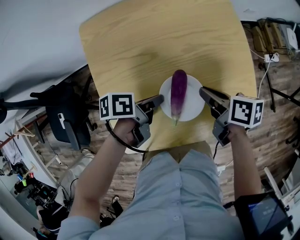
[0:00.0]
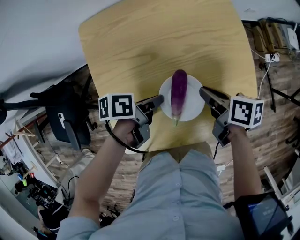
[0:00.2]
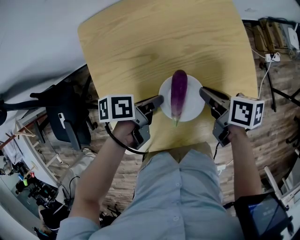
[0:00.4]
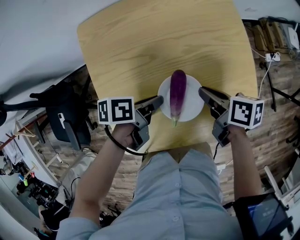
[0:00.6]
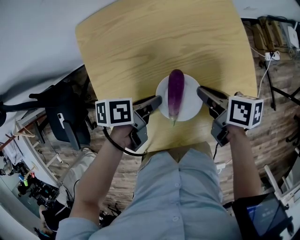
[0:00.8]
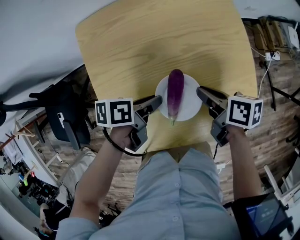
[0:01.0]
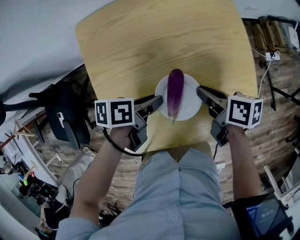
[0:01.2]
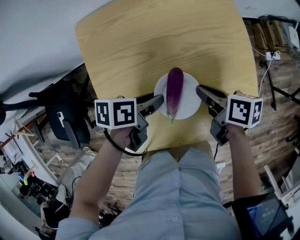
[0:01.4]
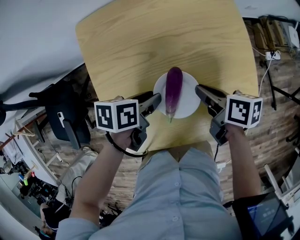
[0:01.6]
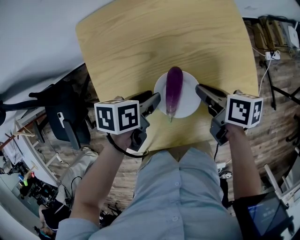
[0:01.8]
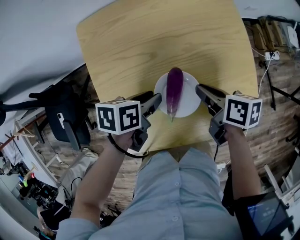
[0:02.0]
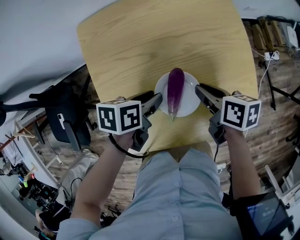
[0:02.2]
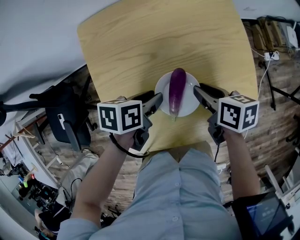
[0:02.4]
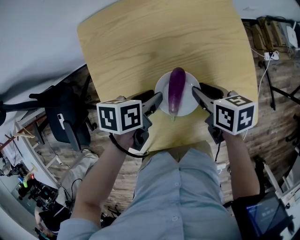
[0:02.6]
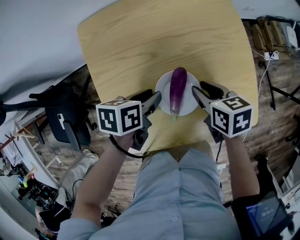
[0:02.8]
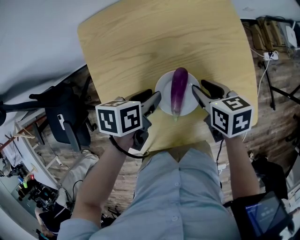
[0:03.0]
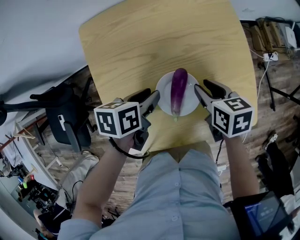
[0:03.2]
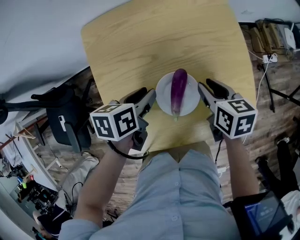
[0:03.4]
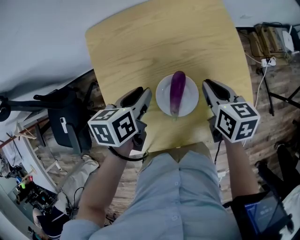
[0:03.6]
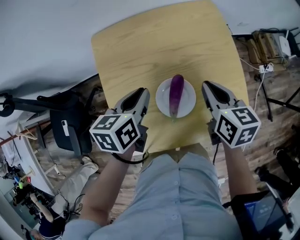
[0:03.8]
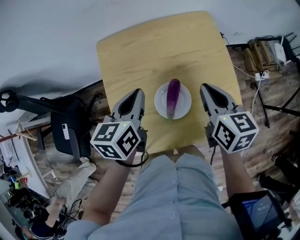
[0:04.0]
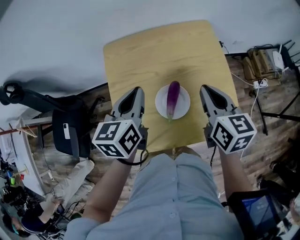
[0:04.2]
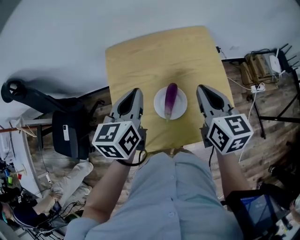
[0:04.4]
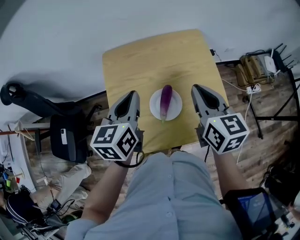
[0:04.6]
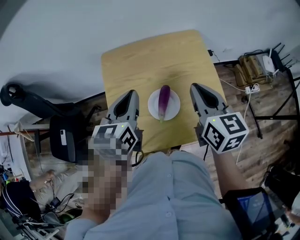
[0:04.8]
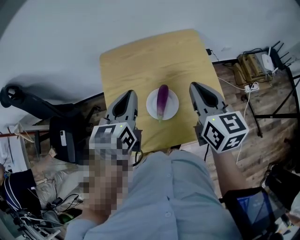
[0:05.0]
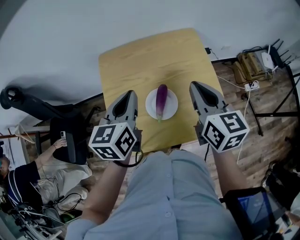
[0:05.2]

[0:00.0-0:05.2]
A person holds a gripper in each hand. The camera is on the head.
0:01.8 to 0:03.4: The right gripper rotates about 30 degrees, and opens up.
0:03.4 to 0:05.2: The right gripper shifts approximately 20 cm upward, swivels roughly 30 degrees, and closes its fingers.

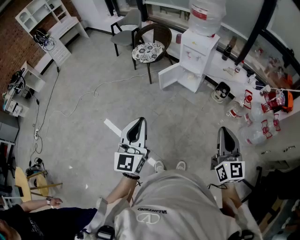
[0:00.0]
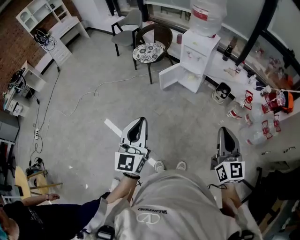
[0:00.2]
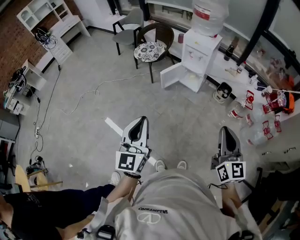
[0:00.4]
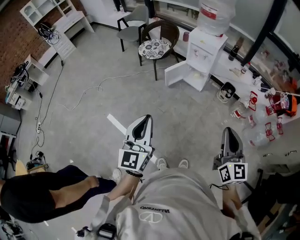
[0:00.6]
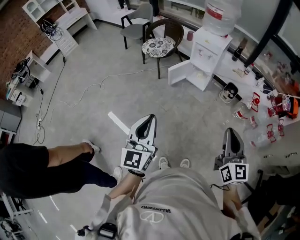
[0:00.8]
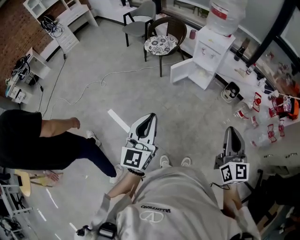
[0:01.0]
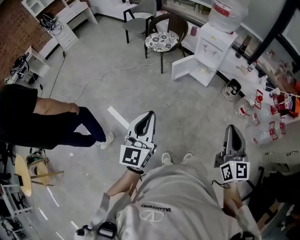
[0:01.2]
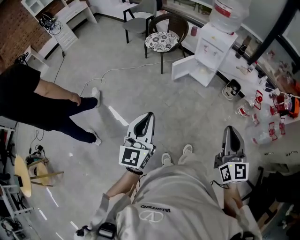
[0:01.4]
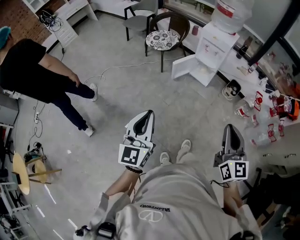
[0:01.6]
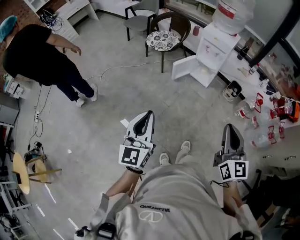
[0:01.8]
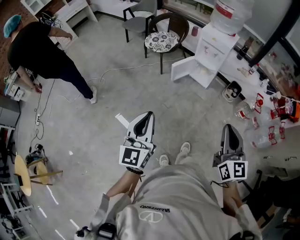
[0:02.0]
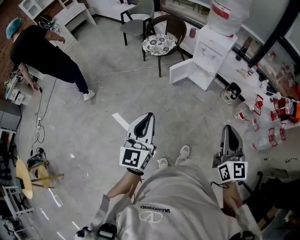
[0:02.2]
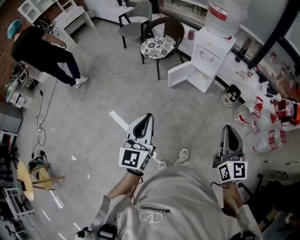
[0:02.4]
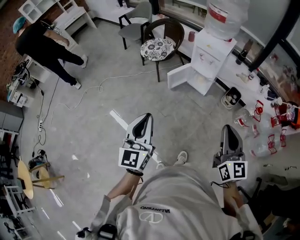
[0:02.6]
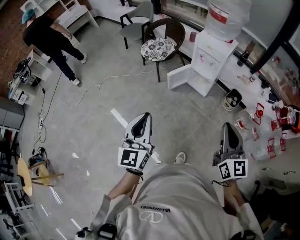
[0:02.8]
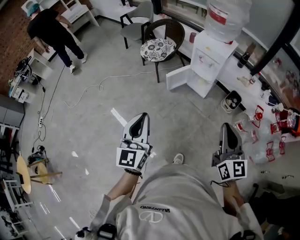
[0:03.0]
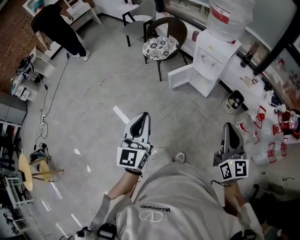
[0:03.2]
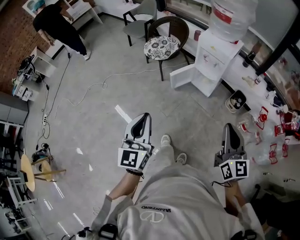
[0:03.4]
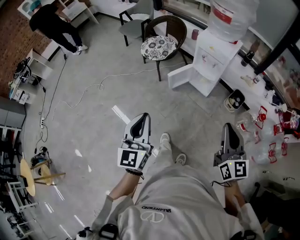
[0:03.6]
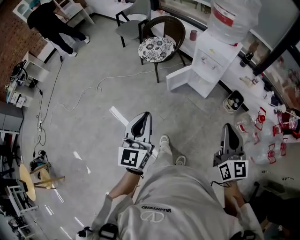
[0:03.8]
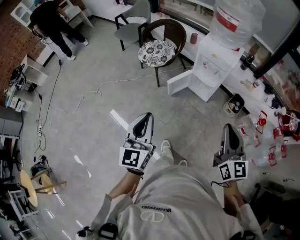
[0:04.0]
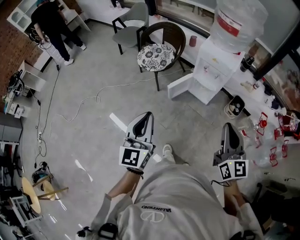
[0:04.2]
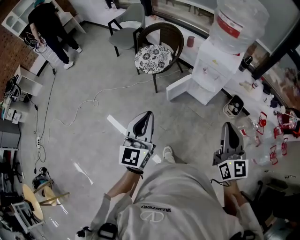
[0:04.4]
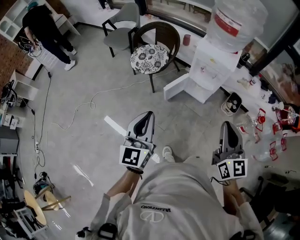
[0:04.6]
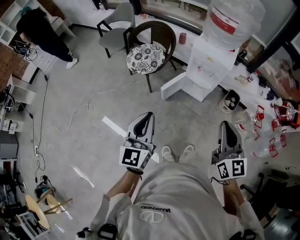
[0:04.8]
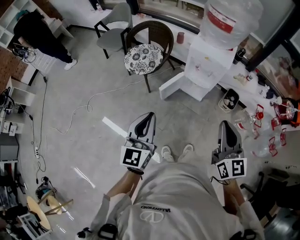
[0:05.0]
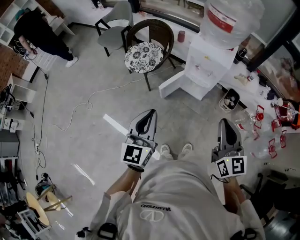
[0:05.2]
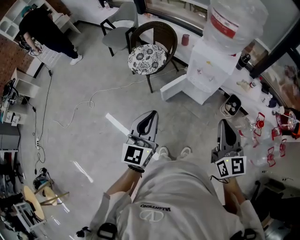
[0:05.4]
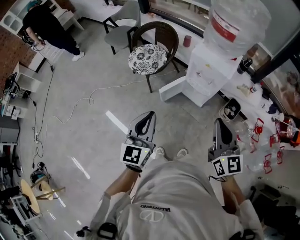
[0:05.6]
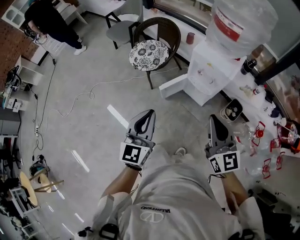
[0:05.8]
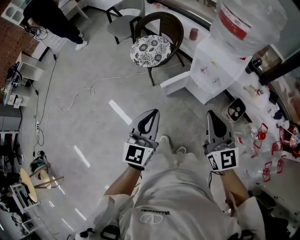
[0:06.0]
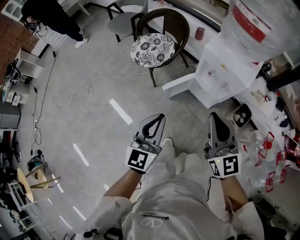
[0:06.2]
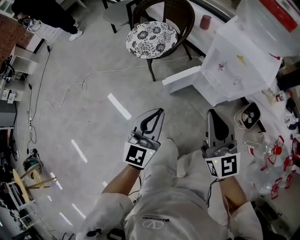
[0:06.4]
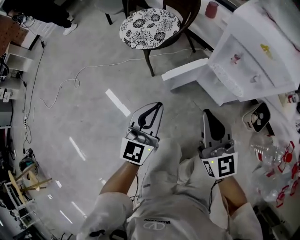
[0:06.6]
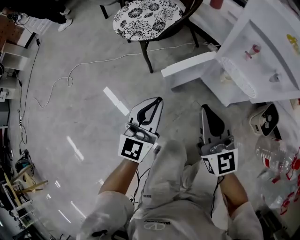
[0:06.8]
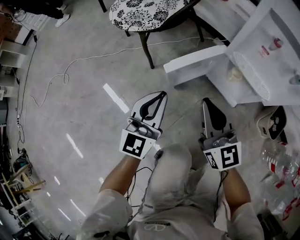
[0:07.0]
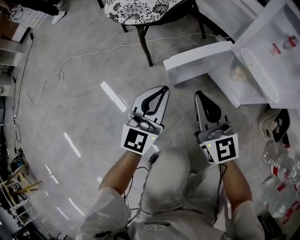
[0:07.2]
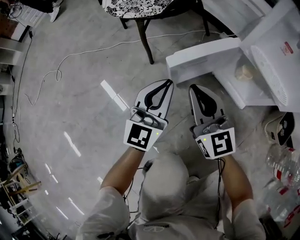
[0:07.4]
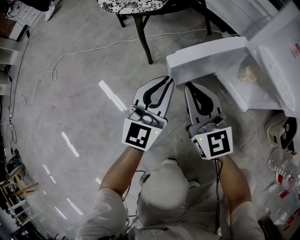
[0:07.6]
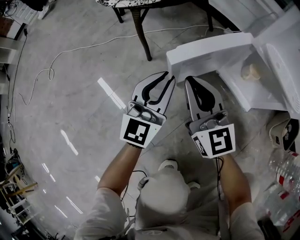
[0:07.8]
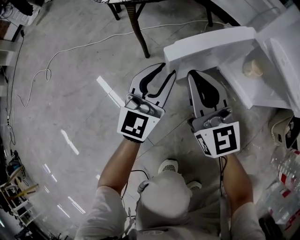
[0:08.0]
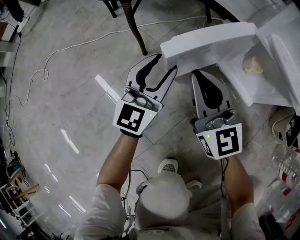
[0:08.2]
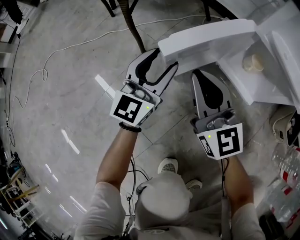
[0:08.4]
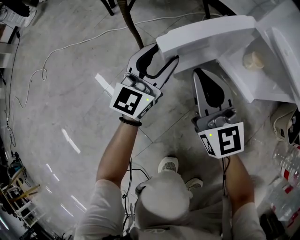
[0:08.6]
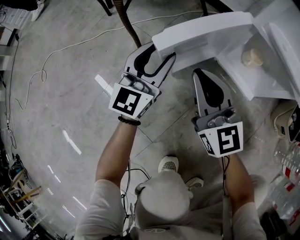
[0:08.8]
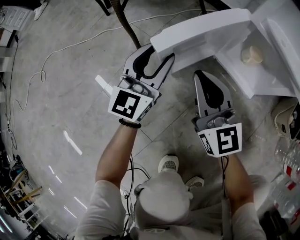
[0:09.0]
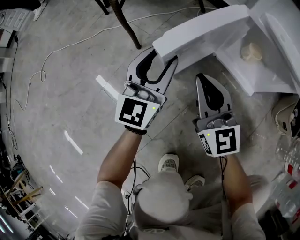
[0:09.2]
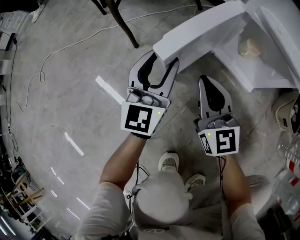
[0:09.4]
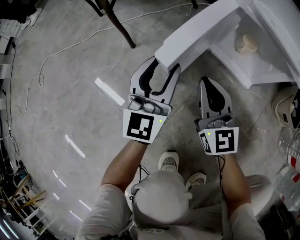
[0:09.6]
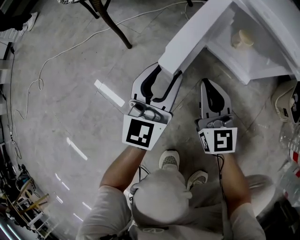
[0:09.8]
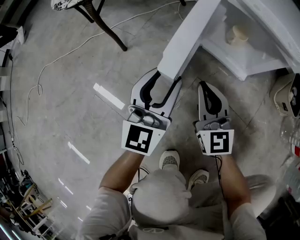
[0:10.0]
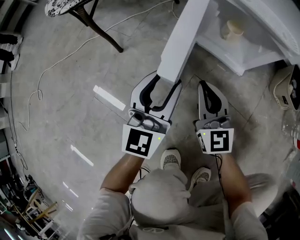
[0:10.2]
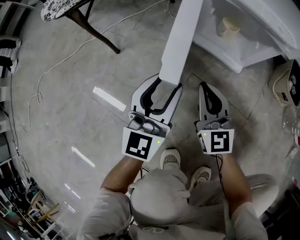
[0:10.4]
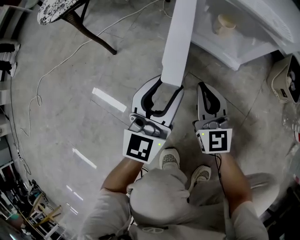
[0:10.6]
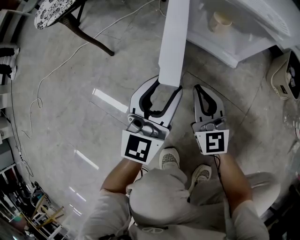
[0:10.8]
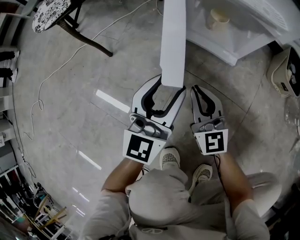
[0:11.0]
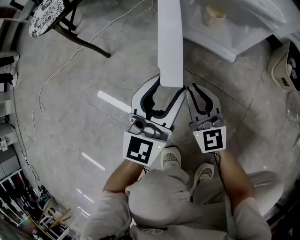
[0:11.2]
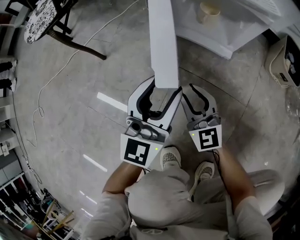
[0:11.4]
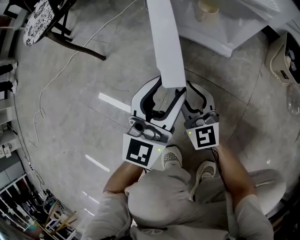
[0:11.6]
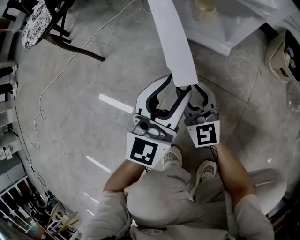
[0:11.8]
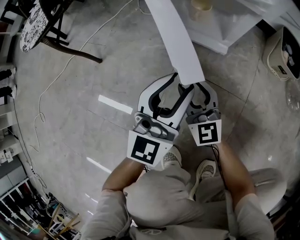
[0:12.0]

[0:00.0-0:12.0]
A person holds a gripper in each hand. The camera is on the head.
0:00.0 to 0:01.6: The two grippers go approximately 10 cm to the left.
0:01.6 to 0:03.0: Both grippers travel together forward and to the right, some 20 cm.
0:03.0 to 0:04.4: The right gripper shifts some 20 cm forward and to the left. Meanwhile the left gripper is displaced forward by about 20 cm.
0:04.4 to 0:06.0: The right gripper shifts roughly 15 cm forward. Meanwhile the left gripper is displaced to the right, forward and downward by roughly 20 cm.
0:06.0 to 0:07.6: Both grippers move downward, approximately 60 cm.
0:07.6 to 0:09.0: The left gripper moves downward and forward, some 10 cm, and opens its fingers; the right gripper travels downward by about 5 cm.
0:09.0 to 0:10.4: The left gripper shifts about 15 cm to the right and backward, while the right gripper heads to the right, downward and backward, covering approximately 15 cm.
0:10.4 to 0:12.0: The left gripper goes about 10 cm to the right. Meanwhile the right gripper moves downward, approximately 5 cm, and opens.

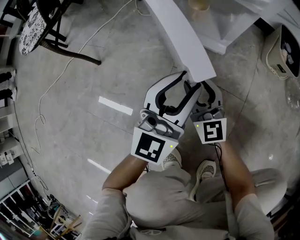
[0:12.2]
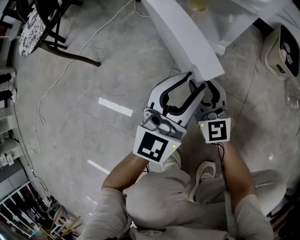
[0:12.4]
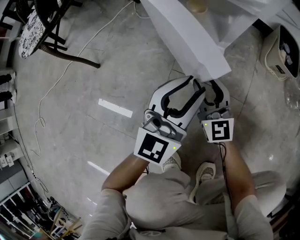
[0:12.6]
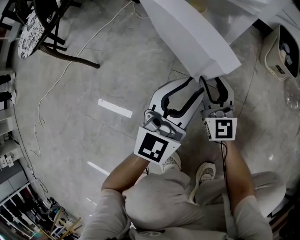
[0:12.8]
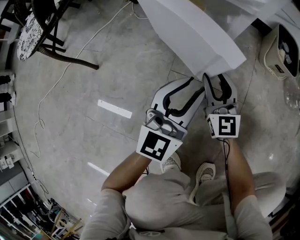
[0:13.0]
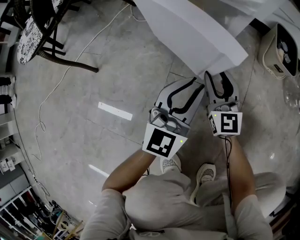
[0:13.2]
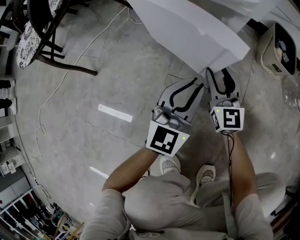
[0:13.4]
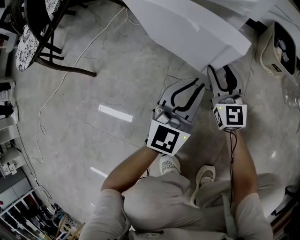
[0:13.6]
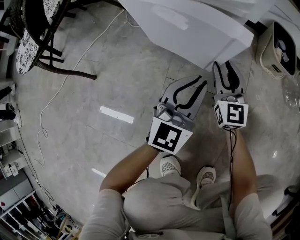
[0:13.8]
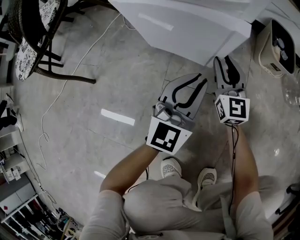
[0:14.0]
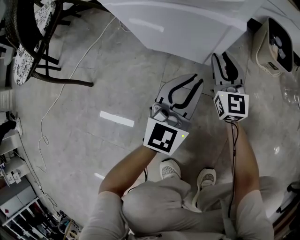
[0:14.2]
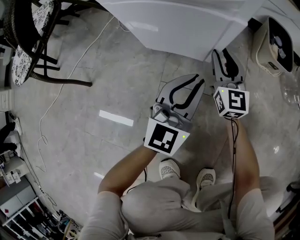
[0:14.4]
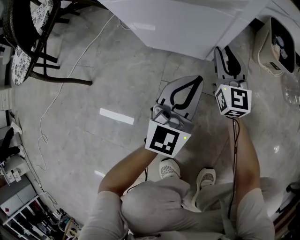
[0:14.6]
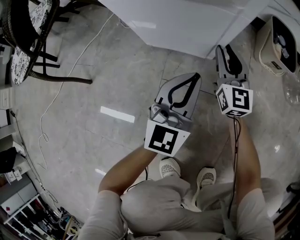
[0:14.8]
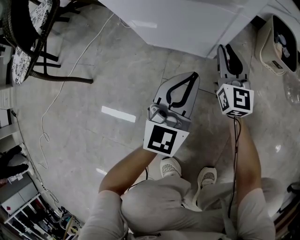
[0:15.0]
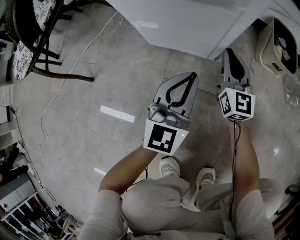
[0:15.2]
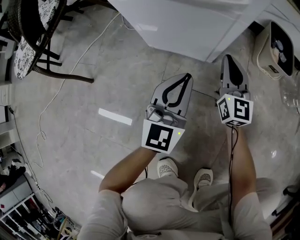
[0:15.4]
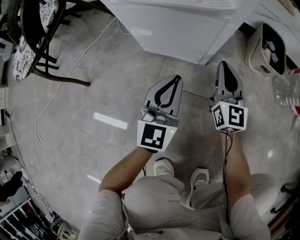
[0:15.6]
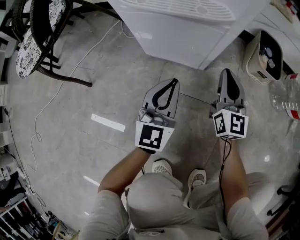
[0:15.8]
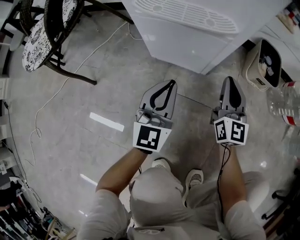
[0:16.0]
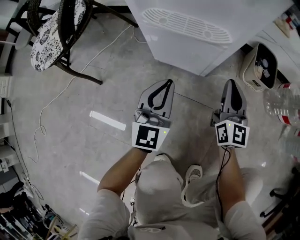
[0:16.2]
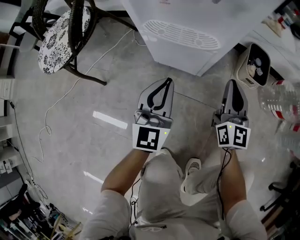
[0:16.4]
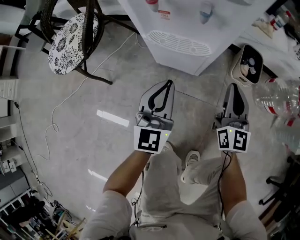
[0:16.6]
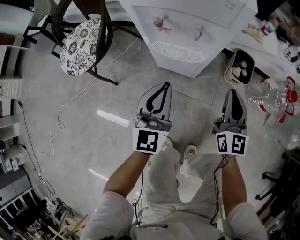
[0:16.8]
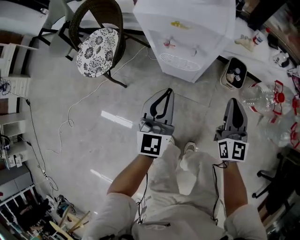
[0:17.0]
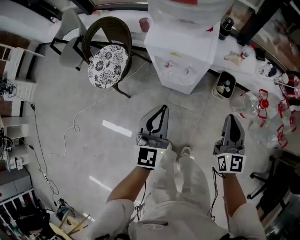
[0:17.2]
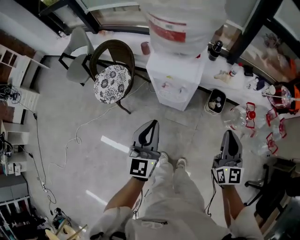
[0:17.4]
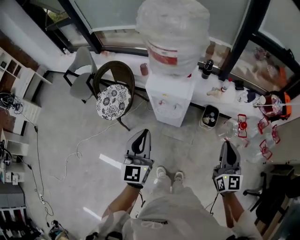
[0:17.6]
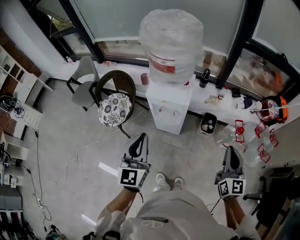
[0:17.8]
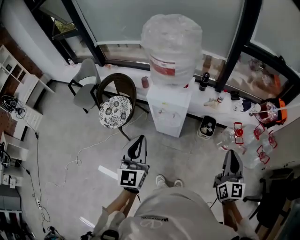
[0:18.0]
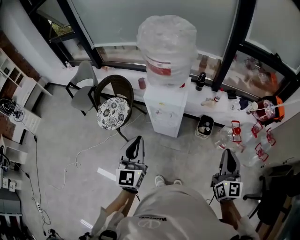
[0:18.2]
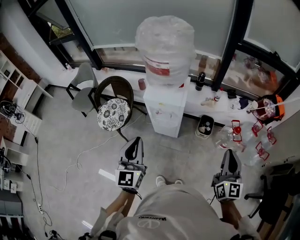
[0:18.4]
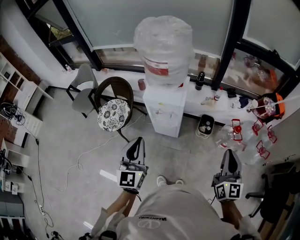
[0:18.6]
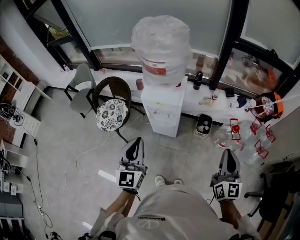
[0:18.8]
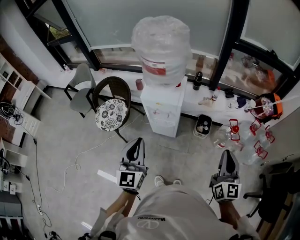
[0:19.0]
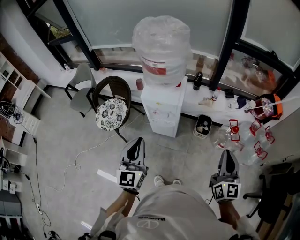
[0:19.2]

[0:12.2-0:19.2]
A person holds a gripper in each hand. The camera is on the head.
0:12.2 to 0:13.6: The right gripper shifts approximately 15 cm to the right and forward; the left gripper is displaced downward and to the right by approximately 10 cm.
0:13.6 to 0:15.0: The right gripper shifts approximately 5 cm forward, and closes.
0:15.0 to 0:16.4: The grippers both shift upward by about 20 cm.
0:16.4 to 0:17.8: Both grippers travel together upward, approximately 70 cm.
0:17.8 to 0:19.2: The right gripper heads backward, covering some 5 cm.
